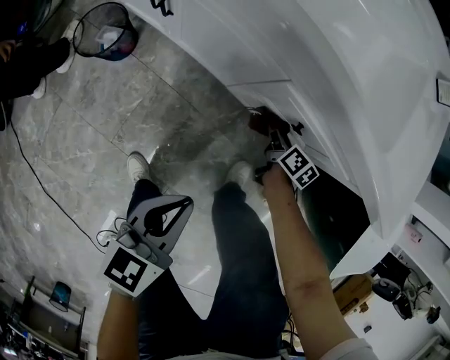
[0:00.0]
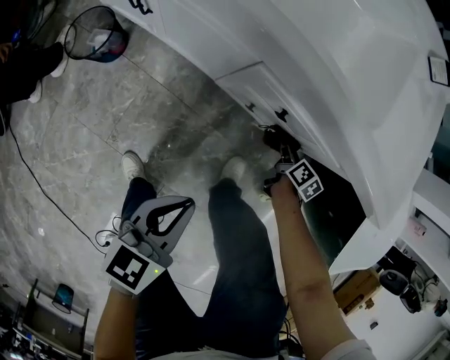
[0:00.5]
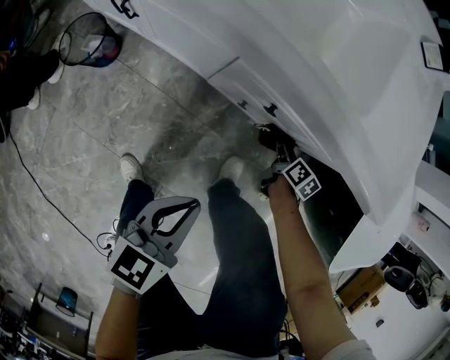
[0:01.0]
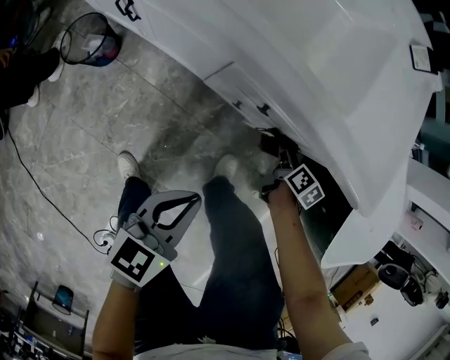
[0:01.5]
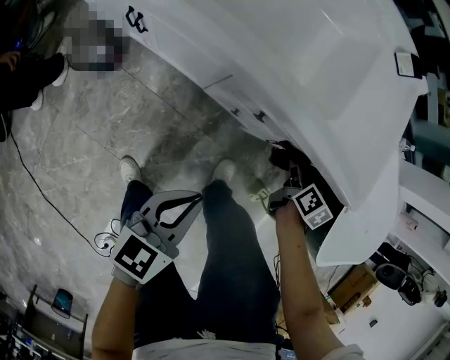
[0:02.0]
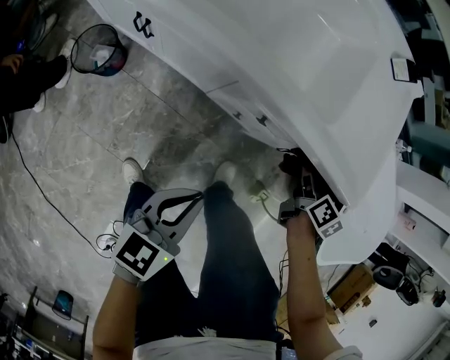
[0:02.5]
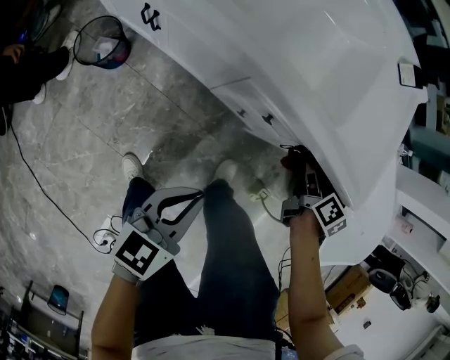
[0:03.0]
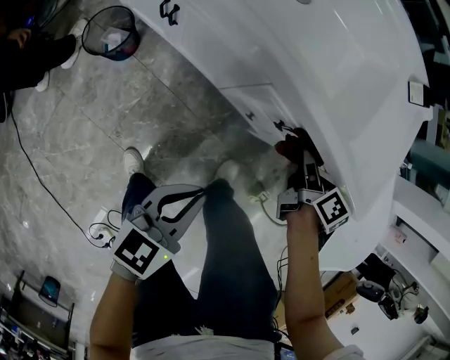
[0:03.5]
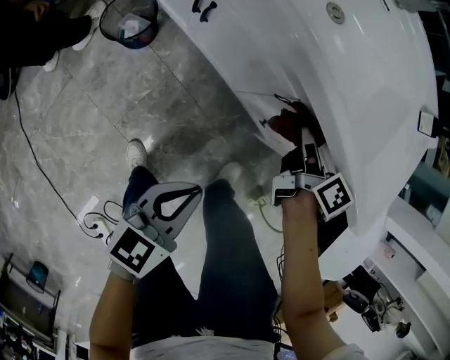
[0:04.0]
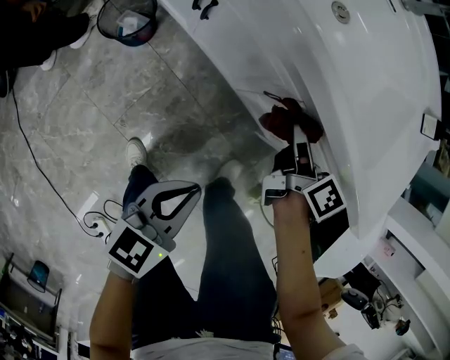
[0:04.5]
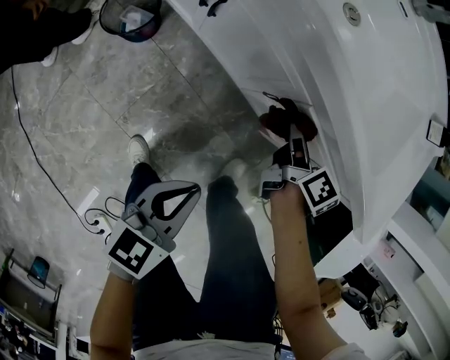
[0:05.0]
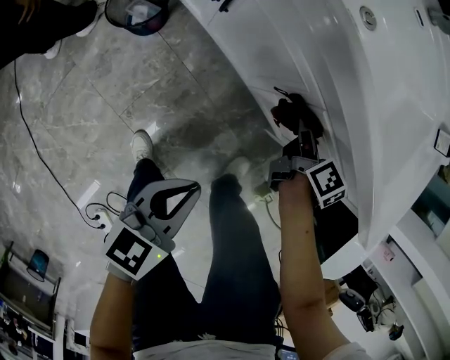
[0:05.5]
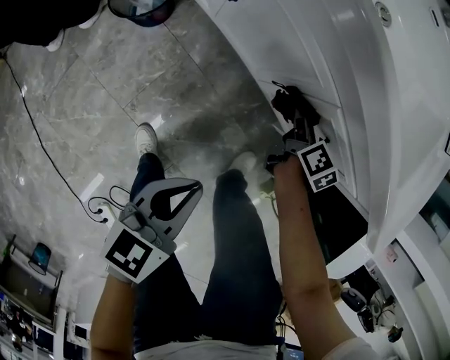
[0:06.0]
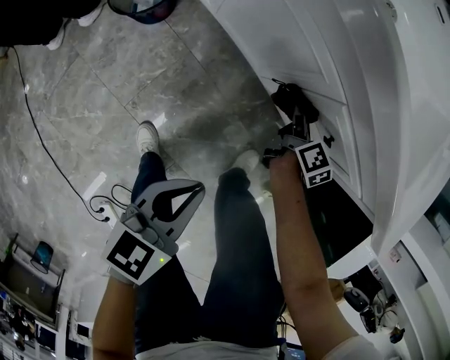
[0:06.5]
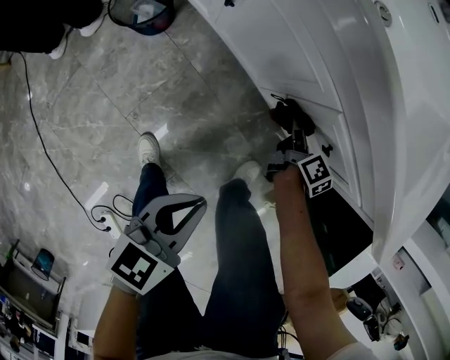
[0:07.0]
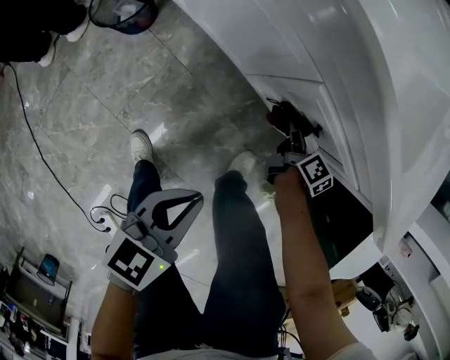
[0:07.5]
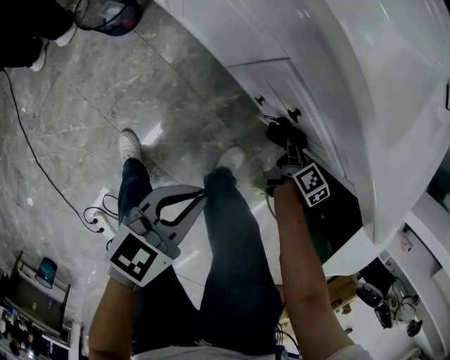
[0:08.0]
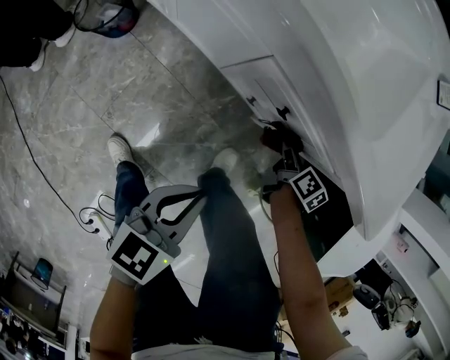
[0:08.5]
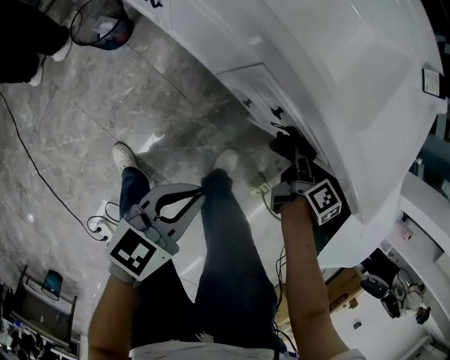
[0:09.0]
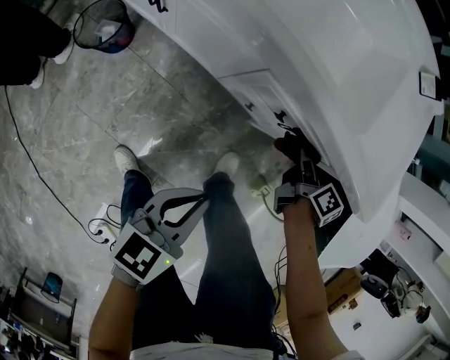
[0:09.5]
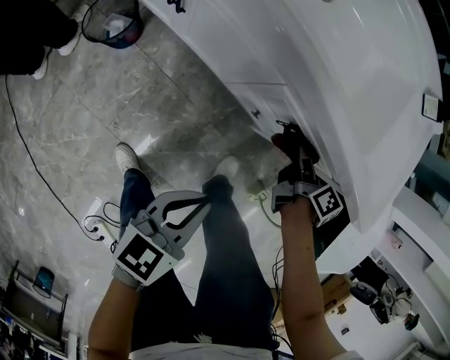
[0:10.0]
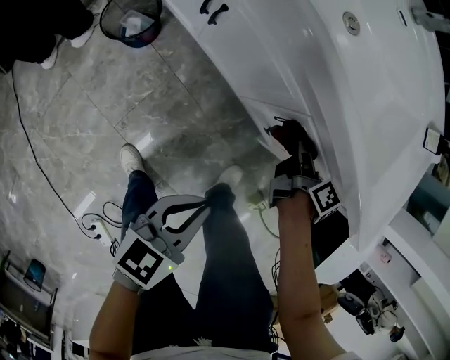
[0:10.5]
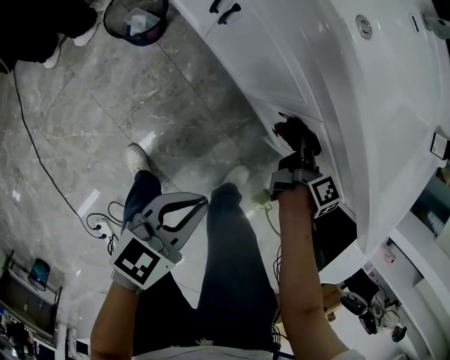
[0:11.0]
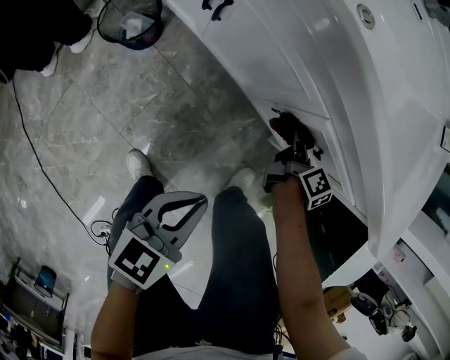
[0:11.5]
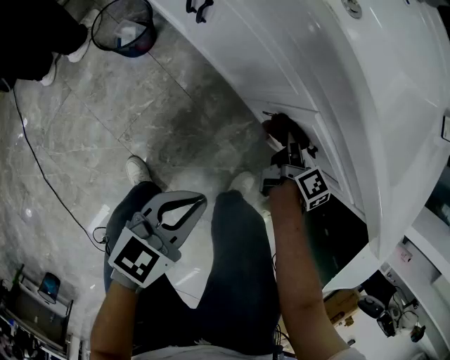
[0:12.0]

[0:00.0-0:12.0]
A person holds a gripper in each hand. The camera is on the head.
0:00.0 to 0:02.0: The right gripper heads upward and to the right, covering about 20 cm, while the left gripper is displaced upward and to the right by approximately 10 cm.
0:02.0 to 0:04.0: The right gripper is displaced to the left by roughly 25 cm, and changes its angle by some 20 degrees. The left gripper is displaced to the left by approximately 10 cm.
0:04.0 to 0:06.0: The left gripper changes place by approximately 5 cm. The right gripper goes some 15 cm downward.
0:06.0 to 0:08.0: The left gripper heads to the right, covering approximately 10 cm. Meanwhile the right gripper heads to the right, covering about 20 cm.
0:08.0 to 0:10.0: The left gripper shifts by approximately 5 cm; the right gripper moves upward, approximately 15 cm.
0:10.0 to 0:12.0: The left gripper moves to the left and downward, approximately 10 cm; the right gripper moves to the left and downward, roughly 15 cm.

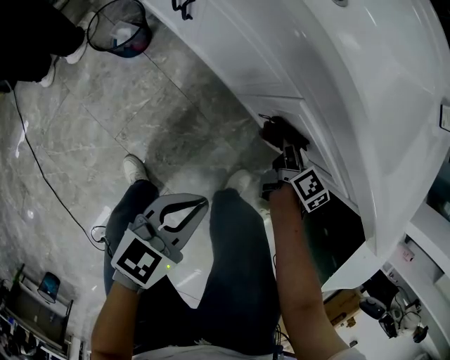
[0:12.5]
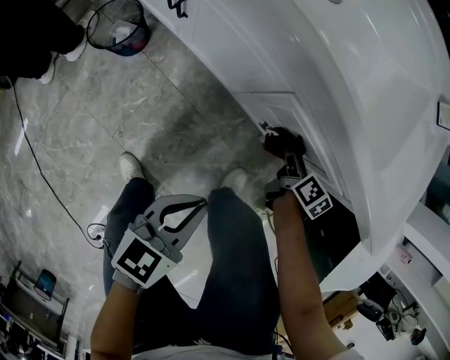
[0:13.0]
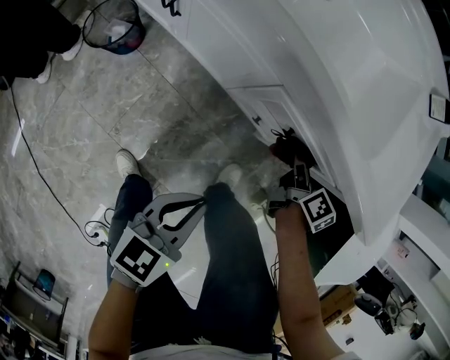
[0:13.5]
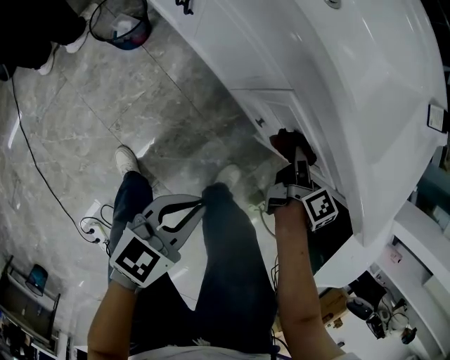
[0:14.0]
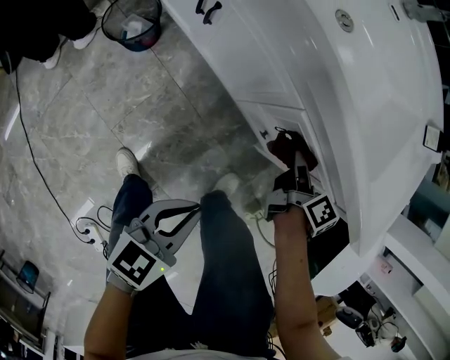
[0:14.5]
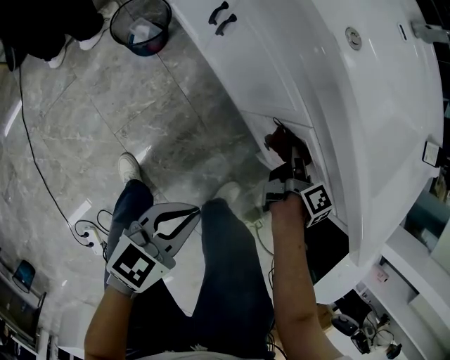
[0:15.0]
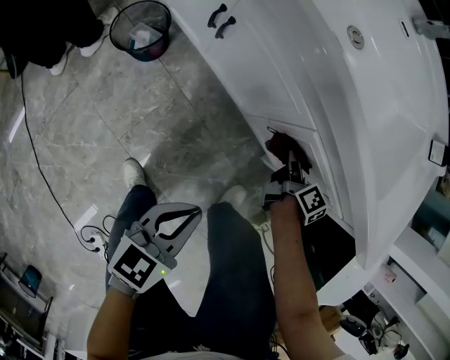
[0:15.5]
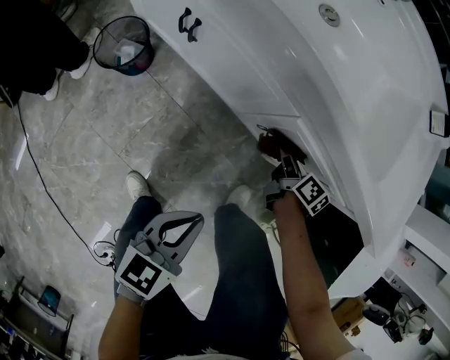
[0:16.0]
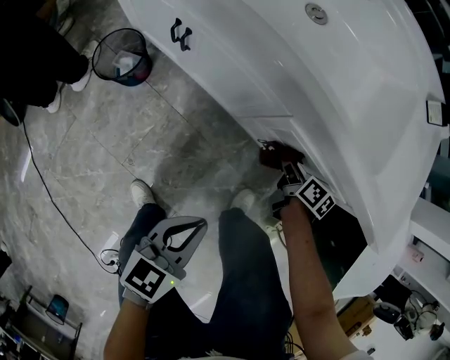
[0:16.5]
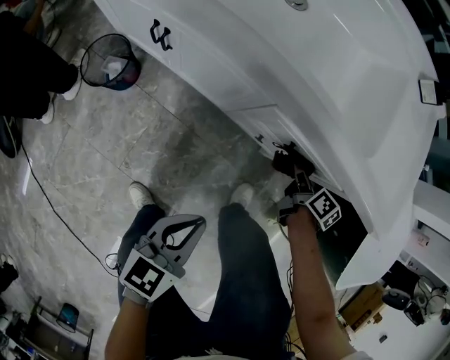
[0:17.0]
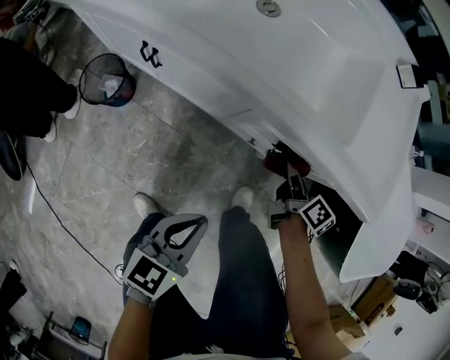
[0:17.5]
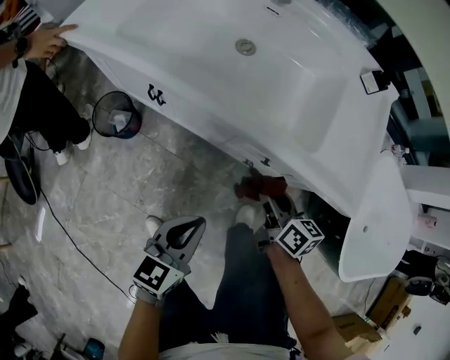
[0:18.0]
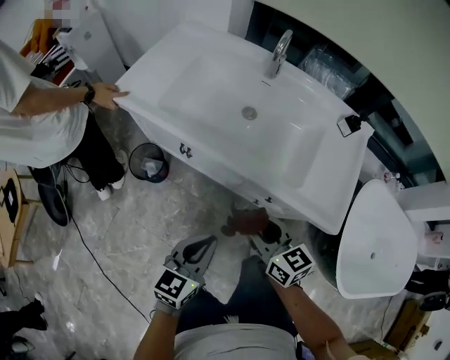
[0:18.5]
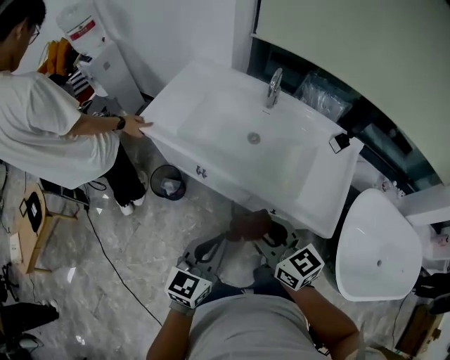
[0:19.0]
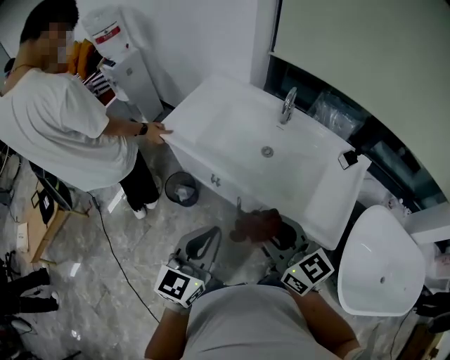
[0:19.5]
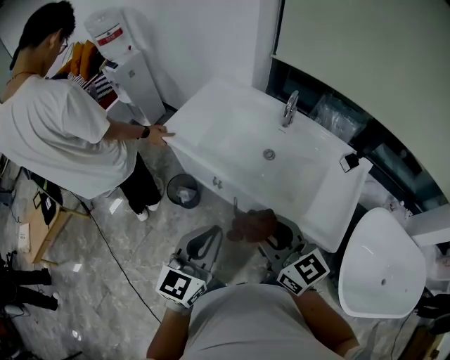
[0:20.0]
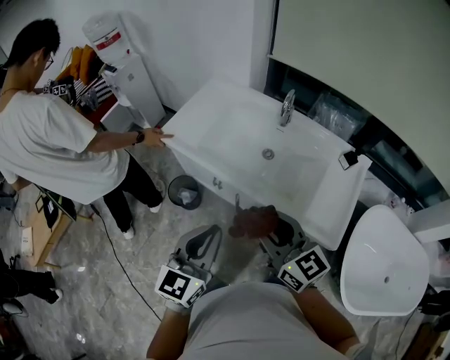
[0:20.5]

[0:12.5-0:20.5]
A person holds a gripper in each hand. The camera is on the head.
0:12.5 to 0:14.5: The right gripper is displaced upward by about 10 cm.
0:14.5 to 0:16.5: The right gripper moves downward, roughly 10 cm.
0:16.5 to 0:18.5: The left gripper travels upward by some 25 cm; the right gripper shifts approximately 40 cm upward, and swivels roughly 50 degrees.
0:18.5 to 0:20.5: Both grippers travel together upward, about 25 cm. The left gripper rotates approximately 20 degrees, while the right gripper rotates roughly 20 degrees.

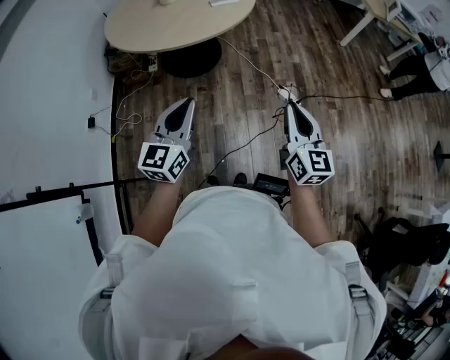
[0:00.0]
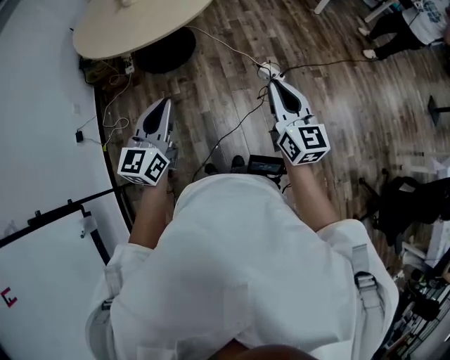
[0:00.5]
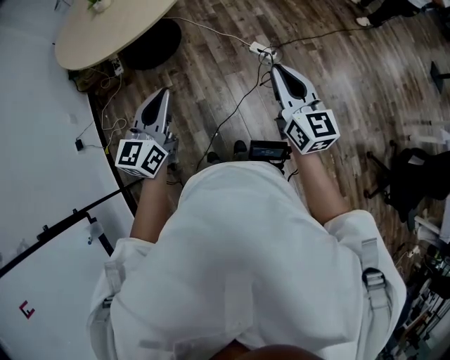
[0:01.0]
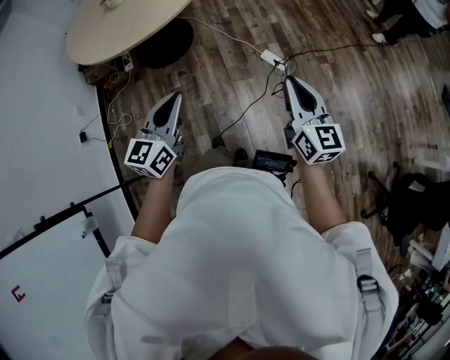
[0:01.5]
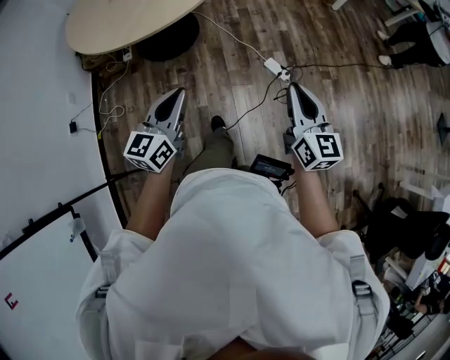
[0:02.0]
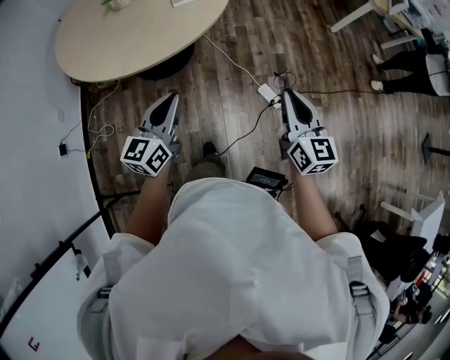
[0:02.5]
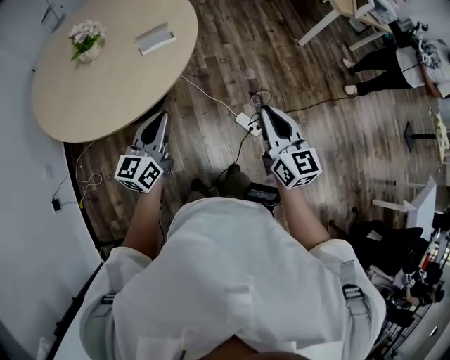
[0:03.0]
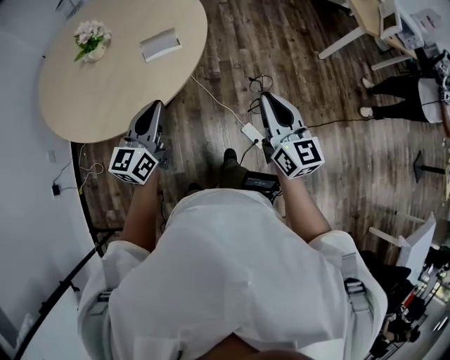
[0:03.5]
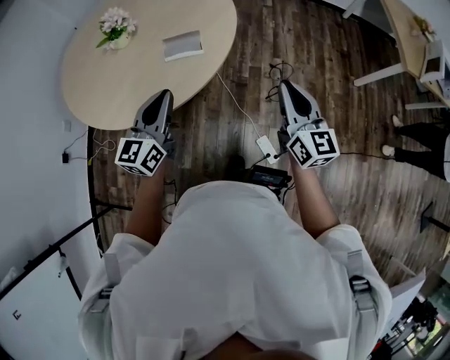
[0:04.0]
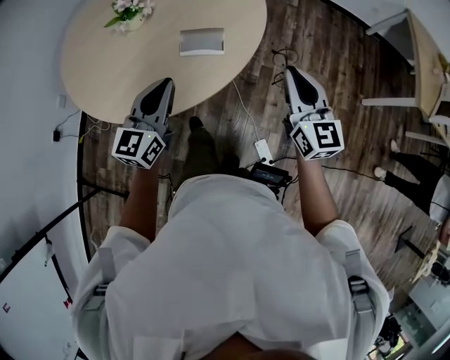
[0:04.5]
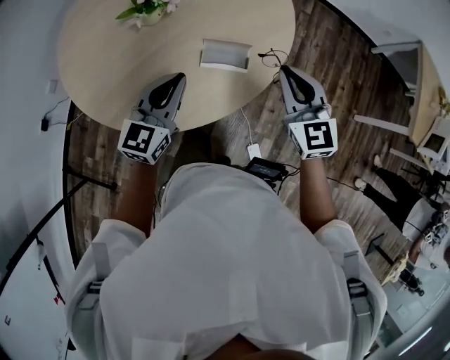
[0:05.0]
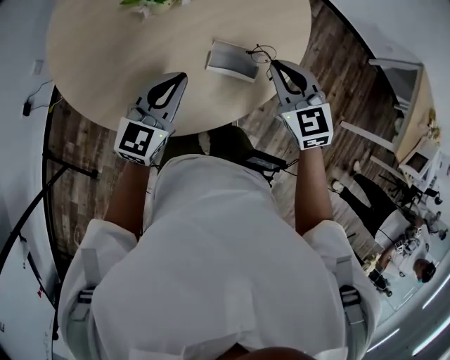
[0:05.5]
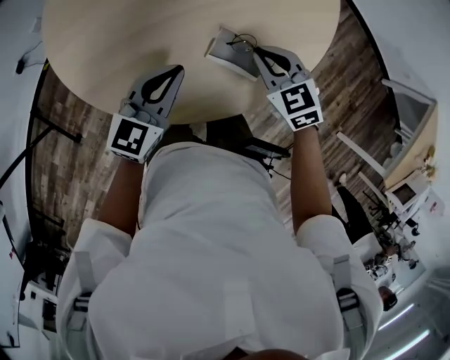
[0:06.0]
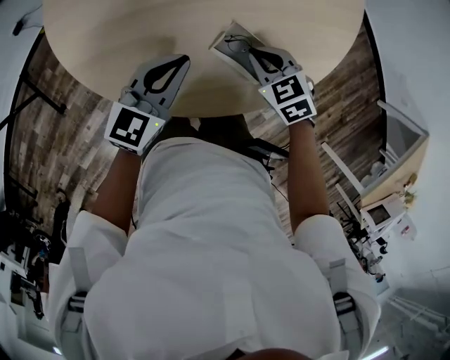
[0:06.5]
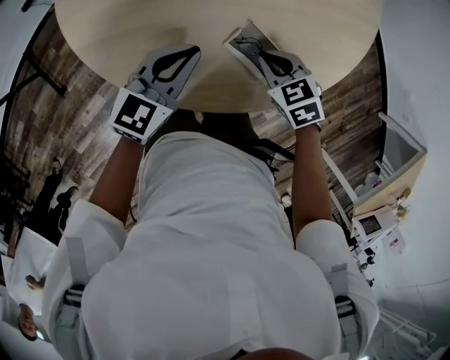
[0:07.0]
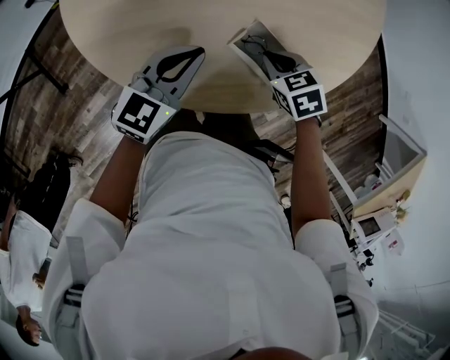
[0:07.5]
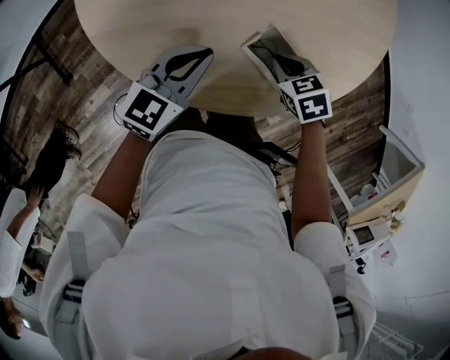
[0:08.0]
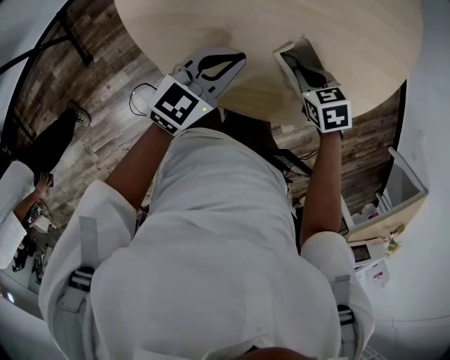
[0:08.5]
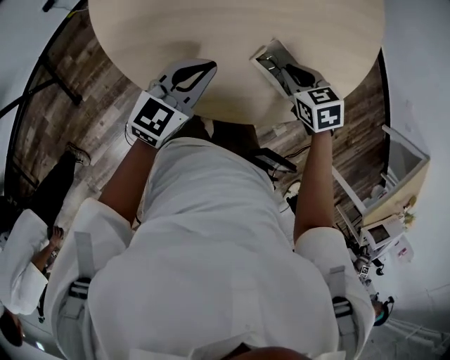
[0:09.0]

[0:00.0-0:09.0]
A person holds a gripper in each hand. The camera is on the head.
0:00.0 to 0:02.0: The right gripper is displaced forward and to the right by approximately 15 cm. The left gripper moves forward, to the right and downward, about 15 cm.
0:02.0 to 0:04.5: Both grippers are carried some 60 cm. The left gripper changes its angle by some 30 degrees. The right gripper changes its angle by about 30 degrees.
0:04.5 to 0:07.0: The right gripper moves about 40 cm, and tilts its fingers some 50 degrees downward, while the left gripper heads downward, covering approximately 20 cm, and changes its angle by some 20 degrees.
0:07.0 to 0:09.0: The left gripper goes roughly 5 cm to the left.
